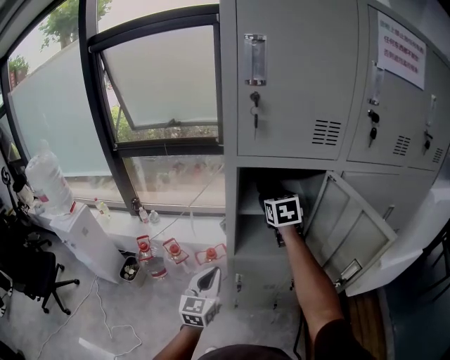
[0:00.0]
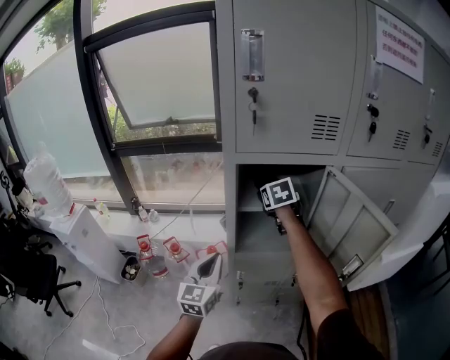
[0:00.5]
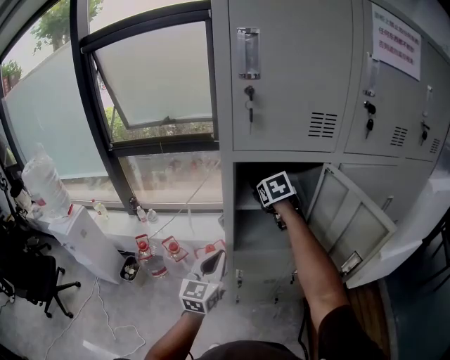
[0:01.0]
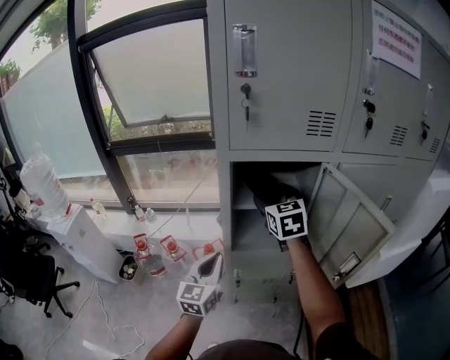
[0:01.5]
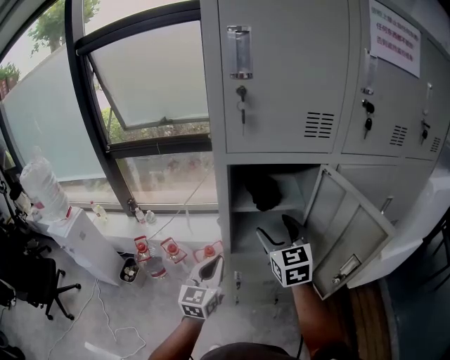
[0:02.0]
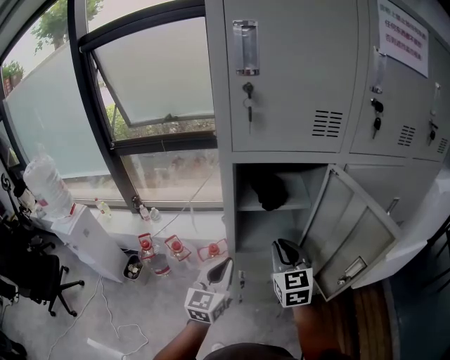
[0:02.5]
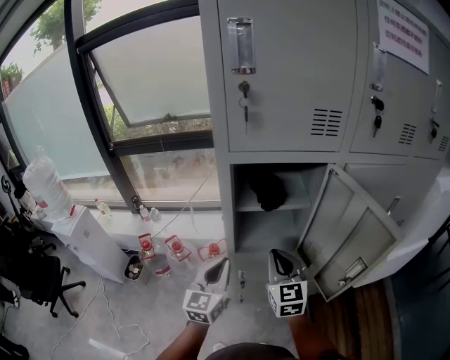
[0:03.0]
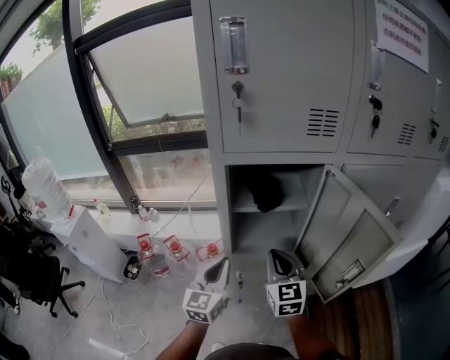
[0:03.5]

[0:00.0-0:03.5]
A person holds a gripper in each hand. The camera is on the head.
0:00.0 to 0:02.0: The right gripper goes roughly 15 cm backward.
0:02.0 to 0:03.5: The right gripper travels downward by roughly 10 cm, and closes up.

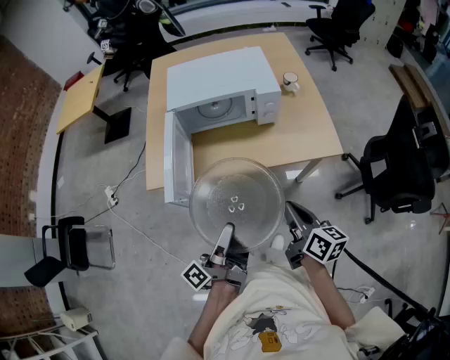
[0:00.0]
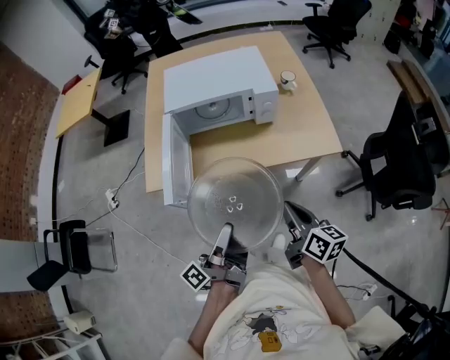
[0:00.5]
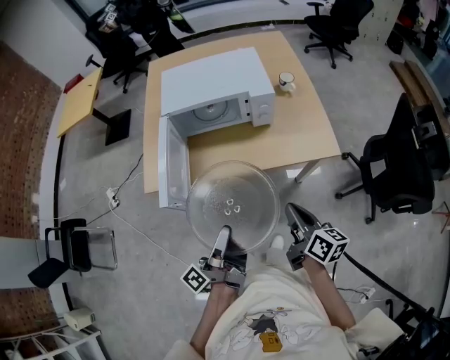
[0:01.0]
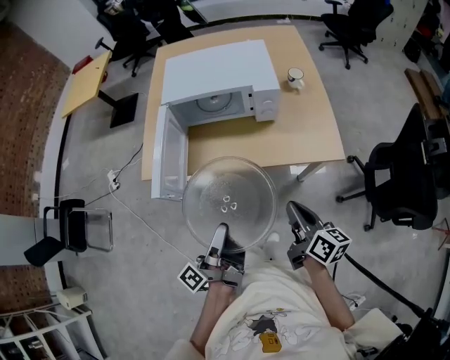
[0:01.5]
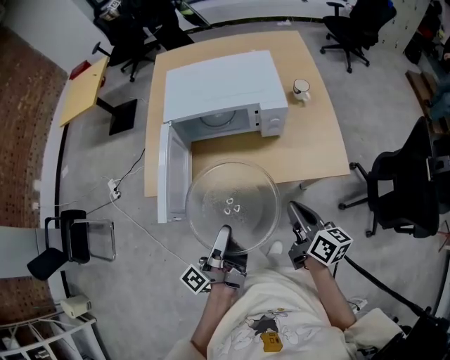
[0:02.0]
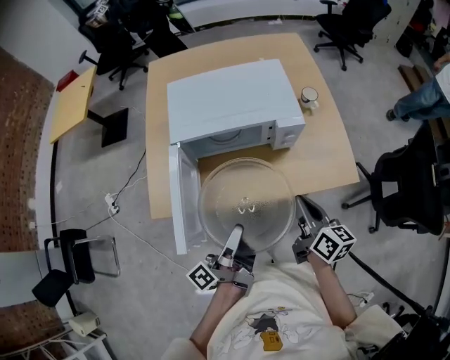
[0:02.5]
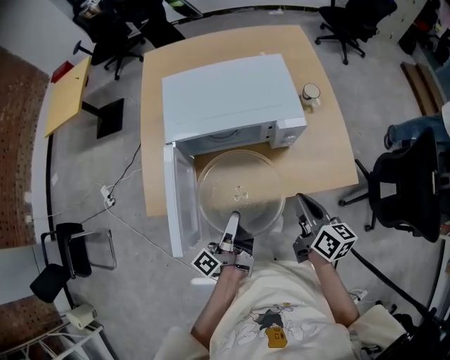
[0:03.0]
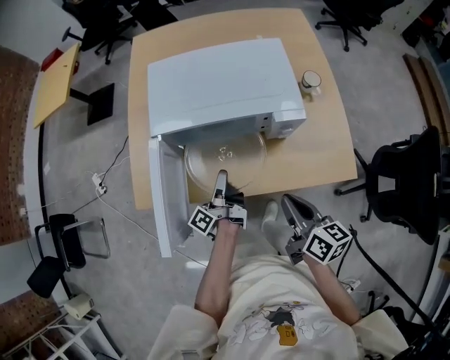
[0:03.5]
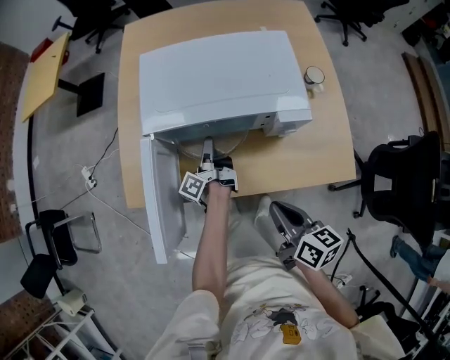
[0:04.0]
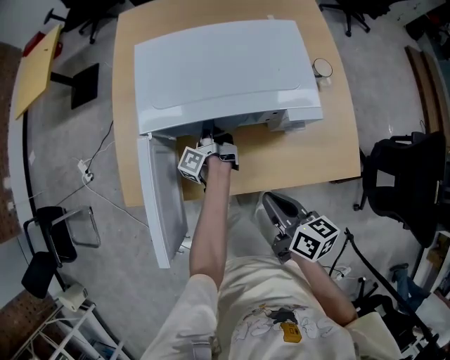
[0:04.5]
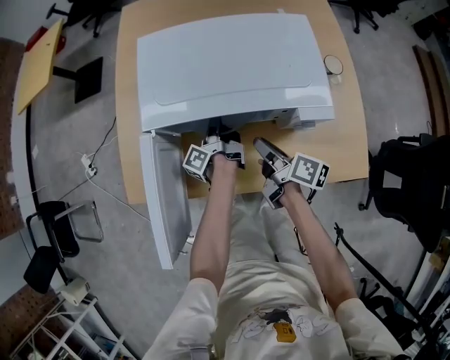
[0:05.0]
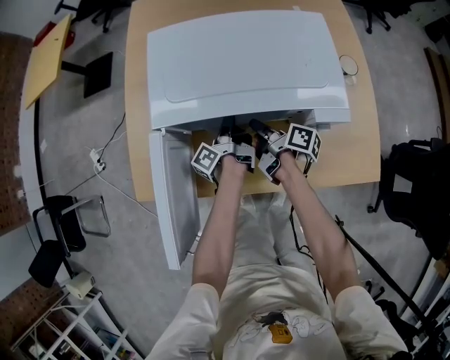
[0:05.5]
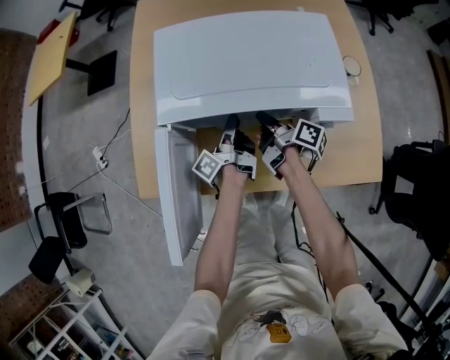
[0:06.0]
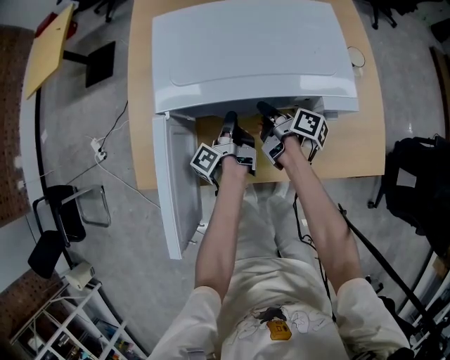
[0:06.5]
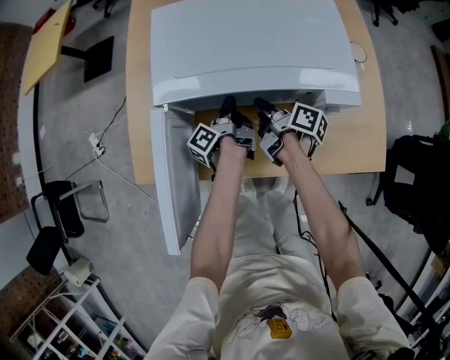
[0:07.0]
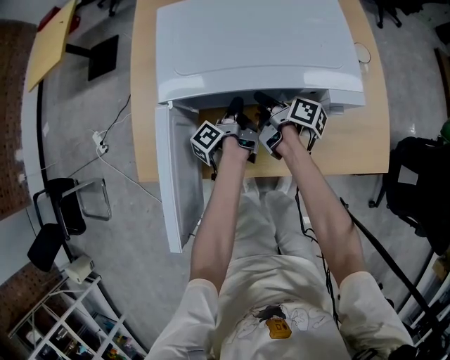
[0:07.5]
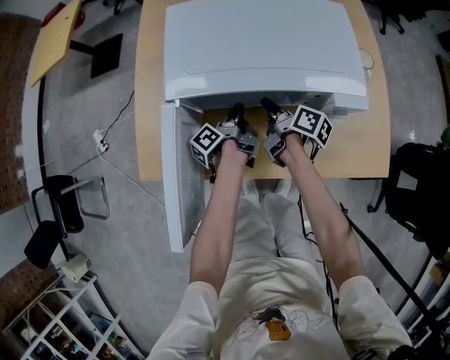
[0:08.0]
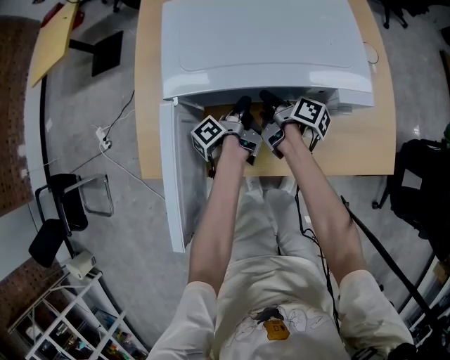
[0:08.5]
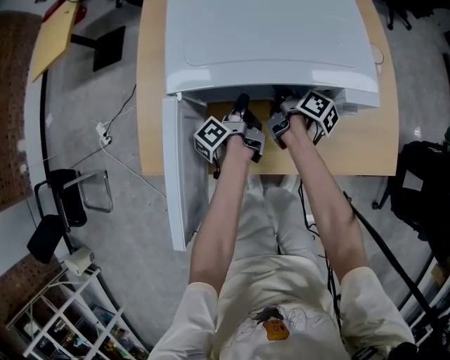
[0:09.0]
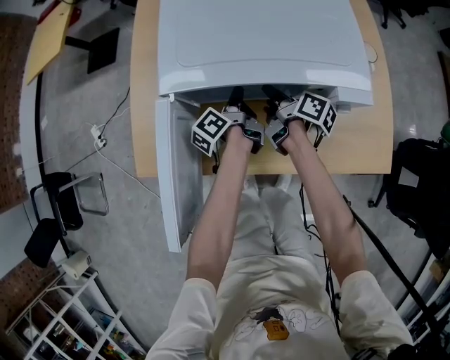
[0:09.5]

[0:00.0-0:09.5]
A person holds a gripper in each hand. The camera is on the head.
0:00.0 to 0:02.0: The right gripper moves approximately 10 cm.
0:02.0 to 0:04.0: The right gripper moves roughly 15 cm.
0:04.0 to 0:05.5: The right gripper ends up approximately 30 cm from where it was, and changes its angle by some 40 degrees.

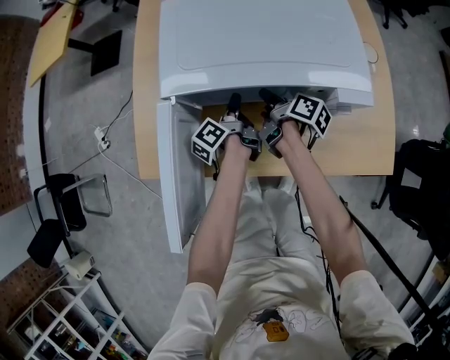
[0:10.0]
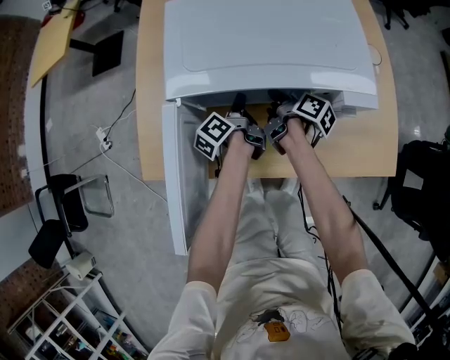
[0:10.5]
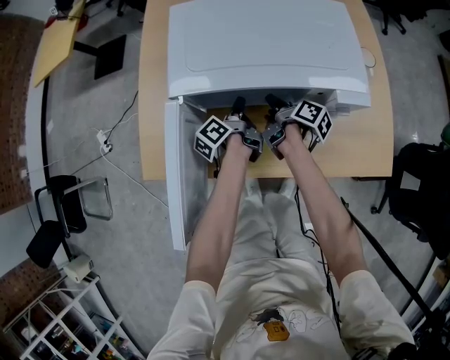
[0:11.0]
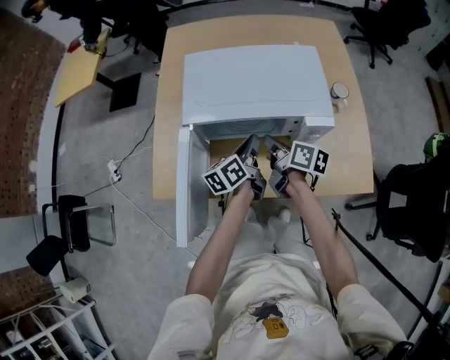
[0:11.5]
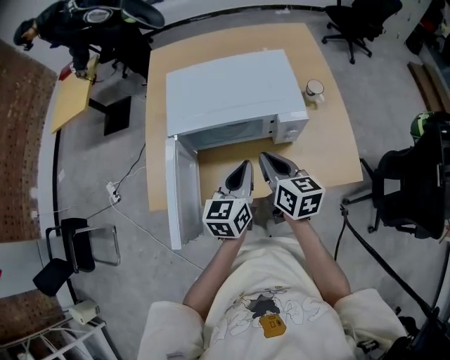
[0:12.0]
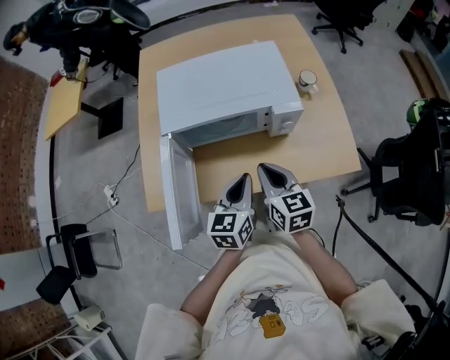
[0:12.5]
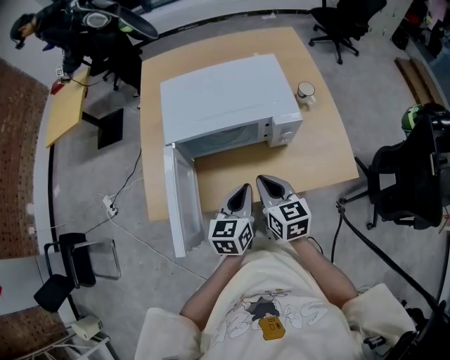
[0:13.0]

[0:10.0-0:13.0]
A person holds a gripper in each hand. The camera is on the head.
0:10.0 to 0:11.5: The right gripper heads upward, covering roughly 15 cm, and rotates approximately 20 degrees.
0:11.5 to 0:13.0: The right gripper ends up roughly 15 cm from where it was, and twists approximately 40 degrees counterclockwise, seen from behind.

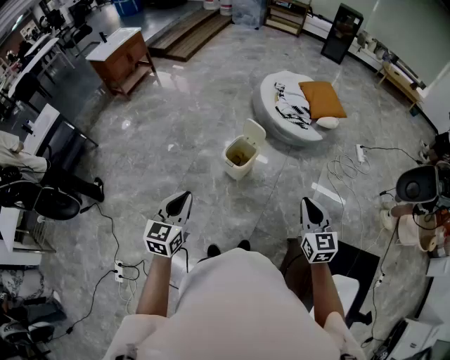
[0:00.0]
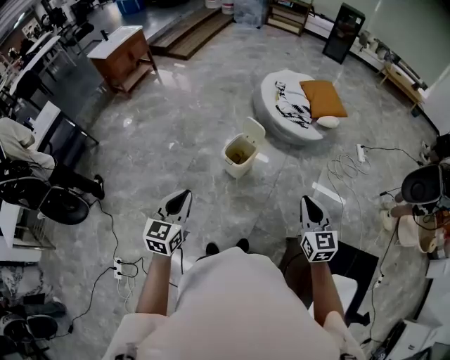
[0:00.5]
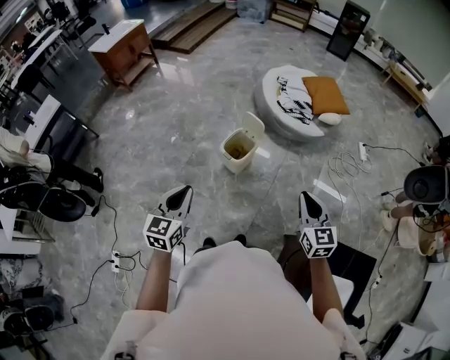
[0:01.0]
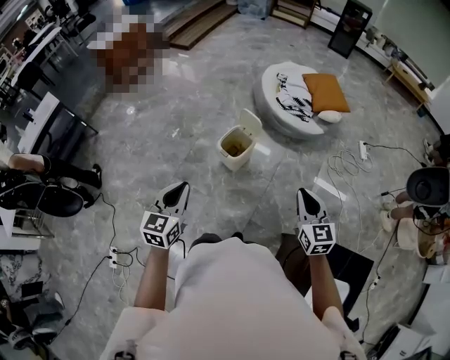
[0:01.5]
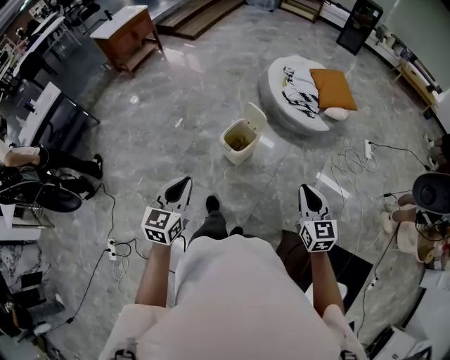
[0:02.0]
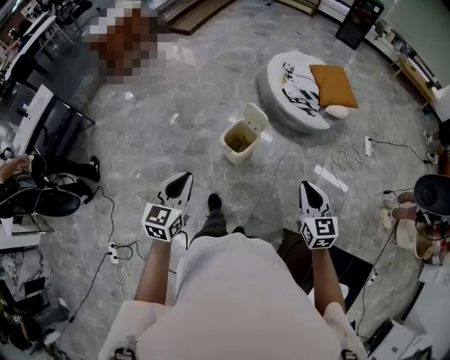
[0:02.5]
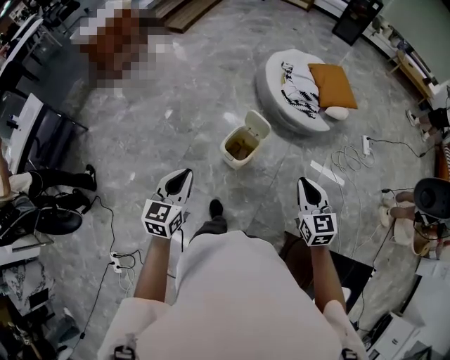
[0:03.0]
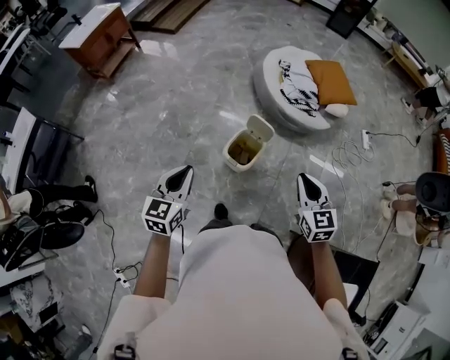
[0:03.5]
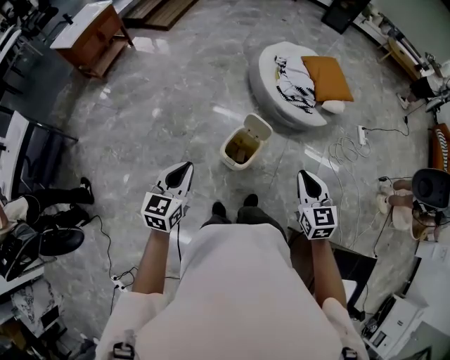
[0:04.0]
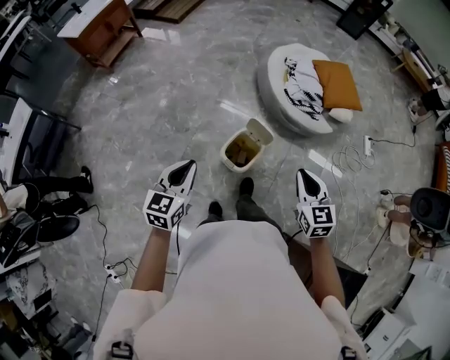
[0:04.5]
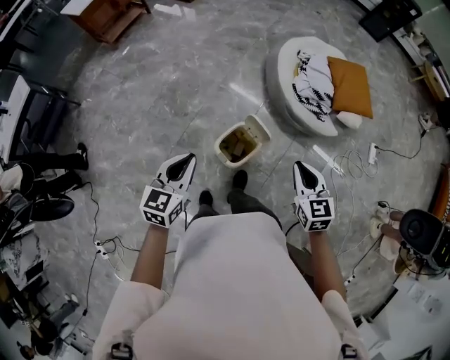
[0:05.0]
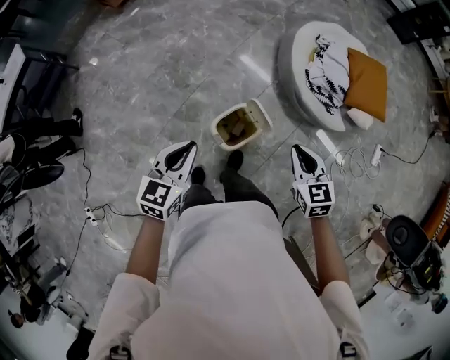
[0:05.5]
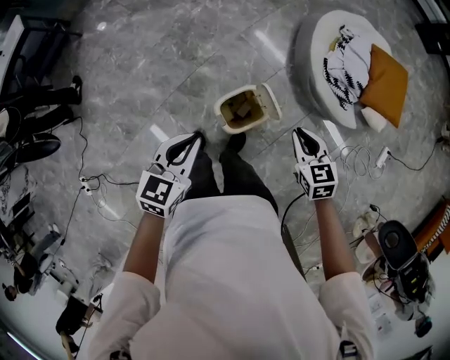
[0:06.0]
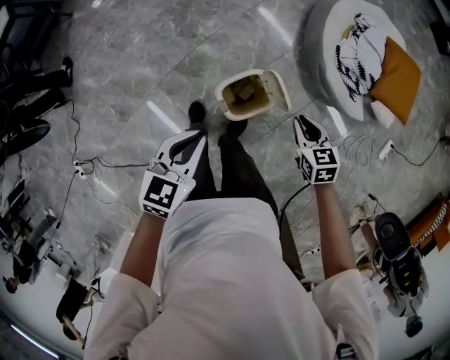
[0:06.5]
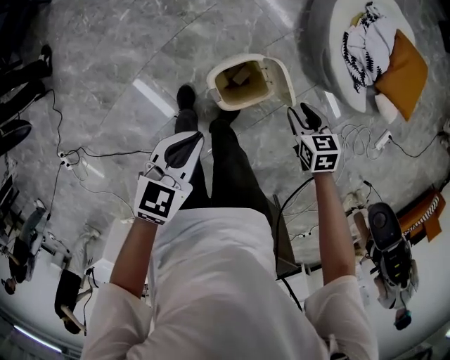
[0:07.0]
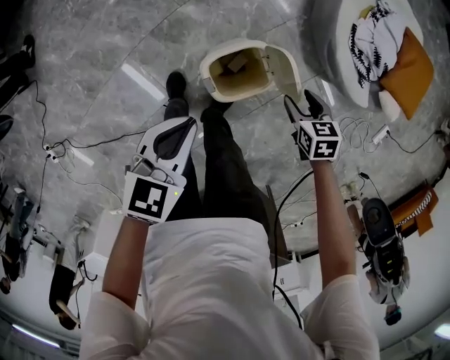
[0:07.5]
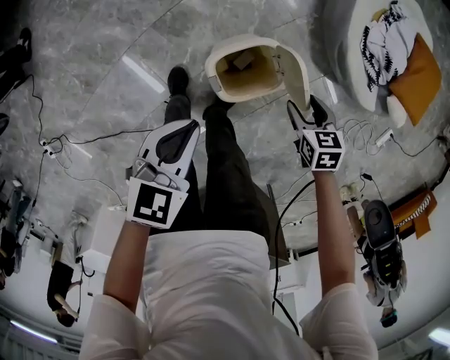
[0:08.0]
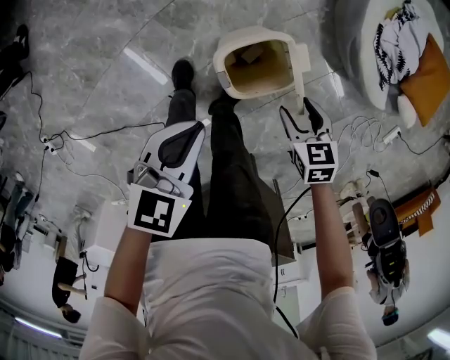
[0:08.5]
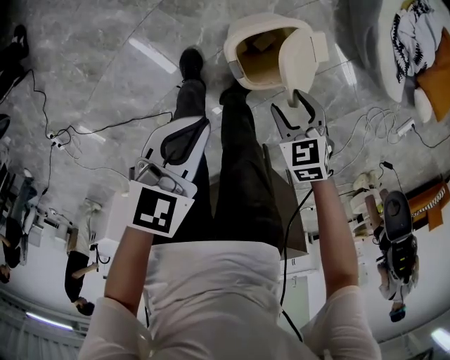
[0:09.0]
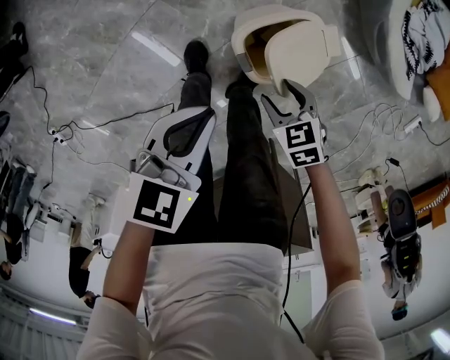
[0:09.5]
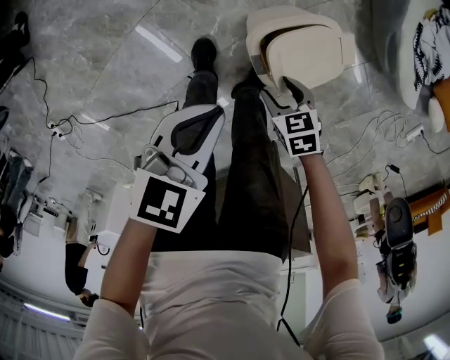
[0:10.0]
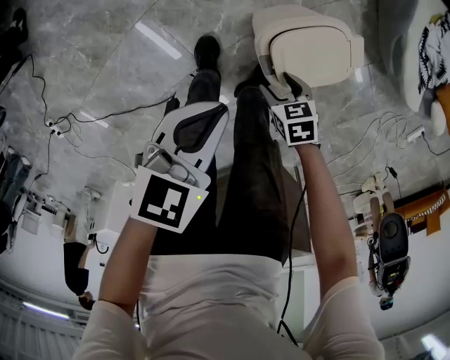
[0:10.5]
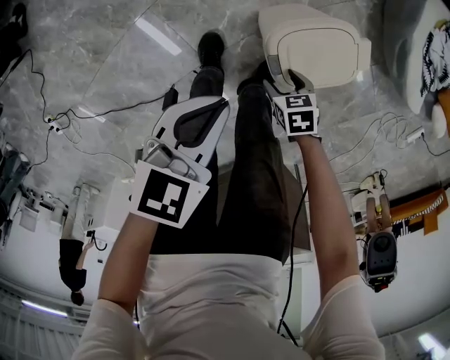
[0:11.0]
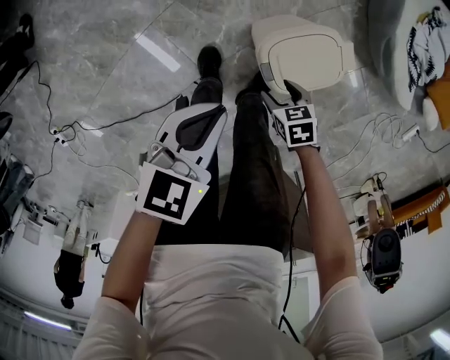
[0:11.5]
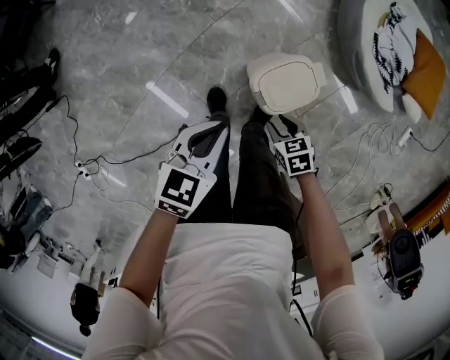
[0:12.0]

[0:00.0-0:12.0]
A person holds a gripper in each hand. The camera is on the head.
0:00.0 to 0:02.0: The left gripper moves to the right, approximately 5 cm. Meanwhile the right gripper moves roughly 5 cm.
0:02.0 to 0:04.0: Both grippers travel together forward and to the left, some 25 cm.
0:04.0 to 0:06.0: The right gripper changes place by roughly 30 cm, and turns by approximately 40 degrees; the left gripper changes place by roughly 20 cm.
0:06.0 to 0:08.0: The grippers both shift downward by some 20 cm. The right gripper turns by some 20 degrees, and opens up.
0:08.0 to 0:10.0: The right gripper changes place by about 25 cm. The left gripper travels downward by some 10 cm.
0:10.0 to 0:12.0: The grippers both shift upward by approximately 10 cm.
